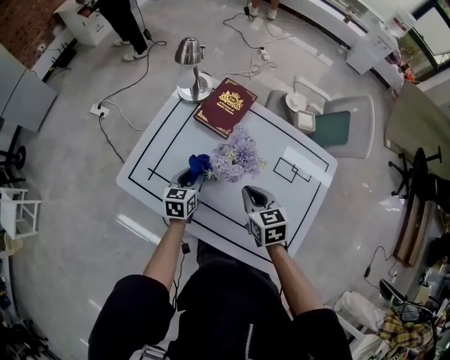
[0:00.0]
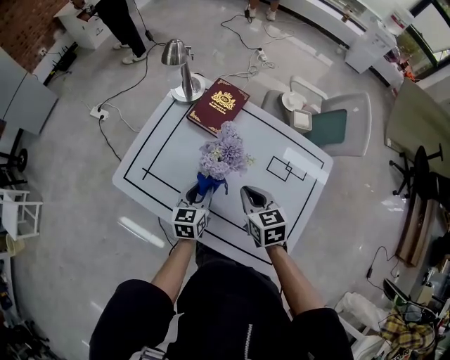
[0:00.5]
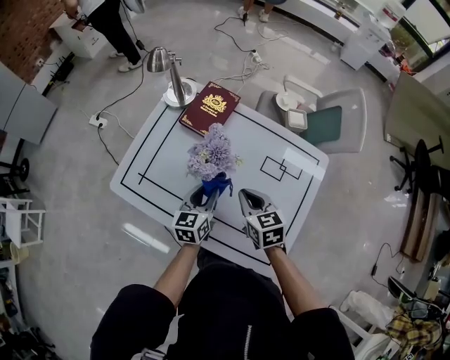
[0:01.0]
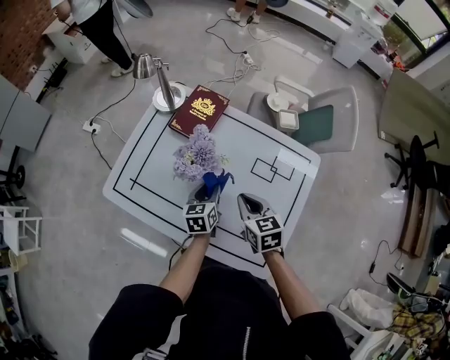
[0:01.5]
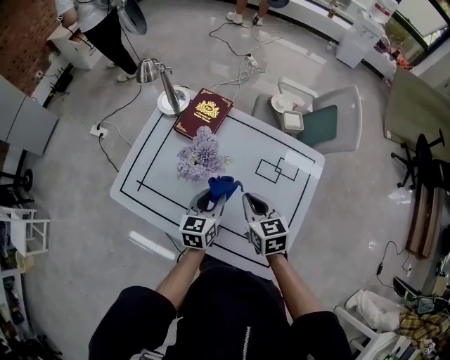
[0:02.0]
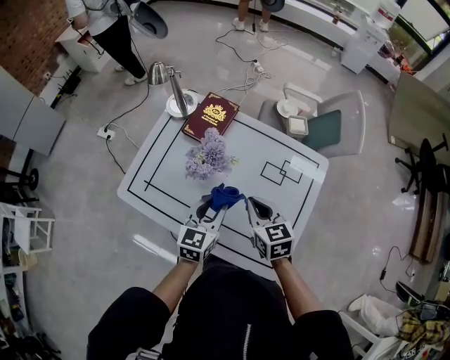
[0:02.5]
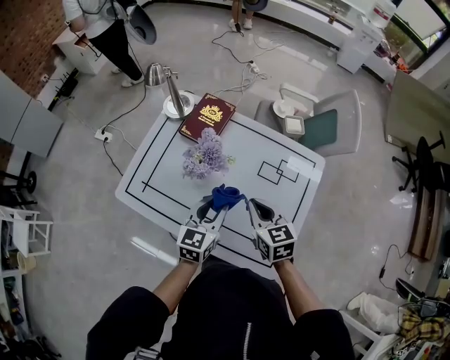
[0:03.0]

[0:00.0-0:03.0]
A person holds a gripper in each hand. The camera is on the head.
0:00.0 to 0:01.5: The right gripper goes approximately 10 cm to the right. Meanwhile the left gripper moves to the right, about 15 cm.
0:01.5 to 0:03.0: The right gripper is displaced upward by some 5 cm. Meanwhile the left gripper moves upward and backward, approximately 15 cm, and changes its angle by some 30 degrees.

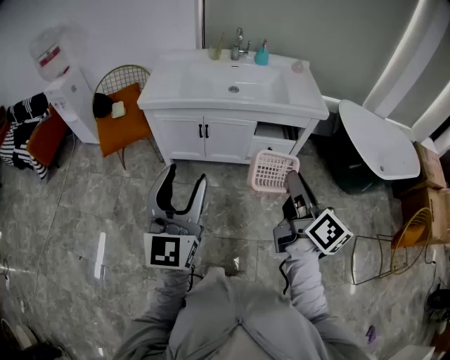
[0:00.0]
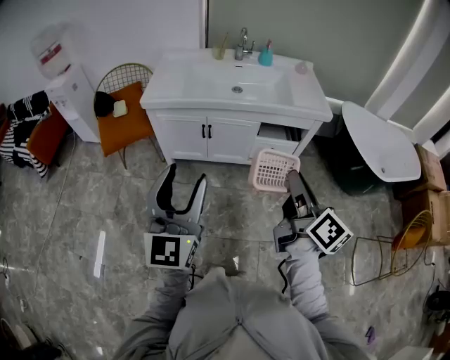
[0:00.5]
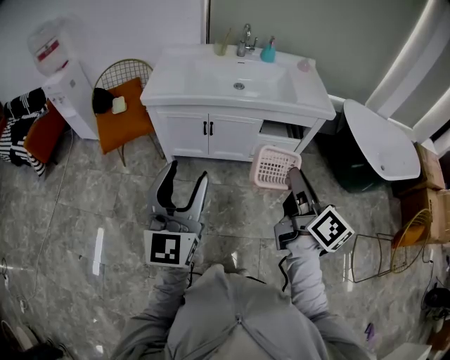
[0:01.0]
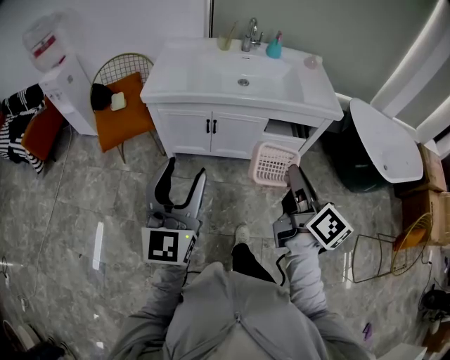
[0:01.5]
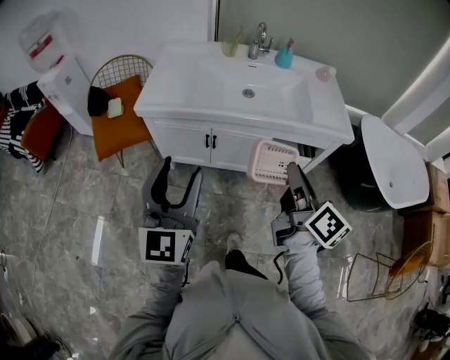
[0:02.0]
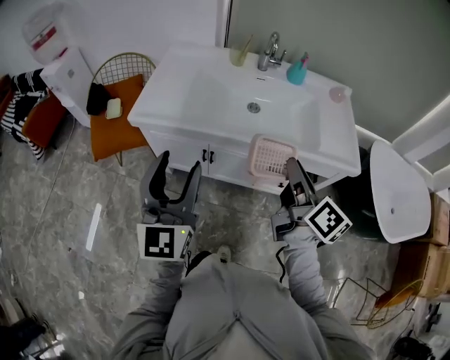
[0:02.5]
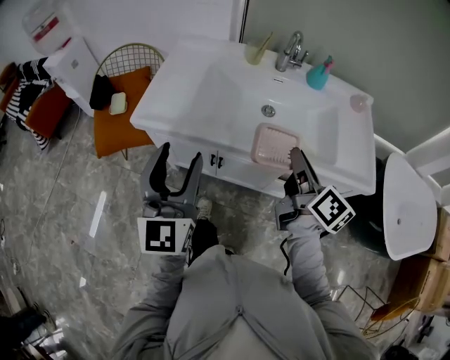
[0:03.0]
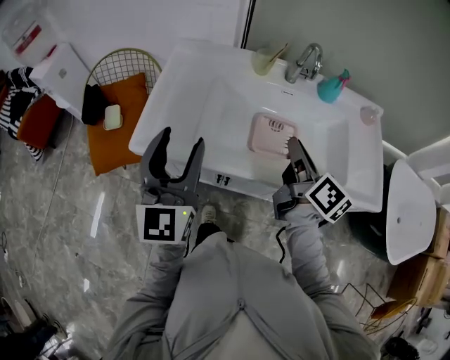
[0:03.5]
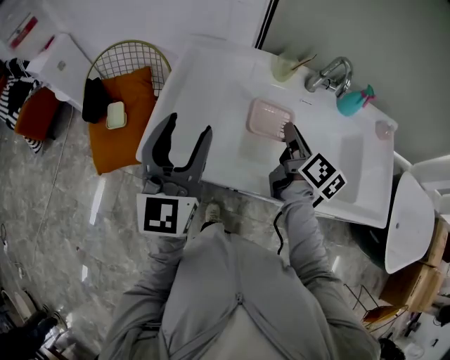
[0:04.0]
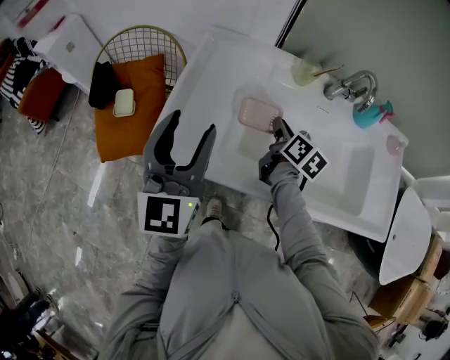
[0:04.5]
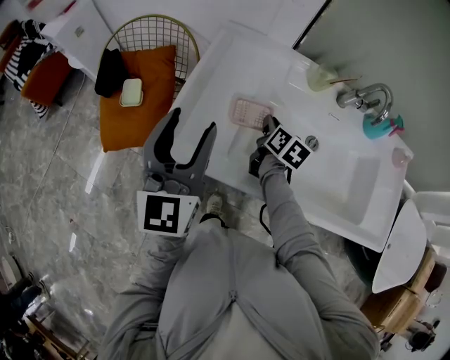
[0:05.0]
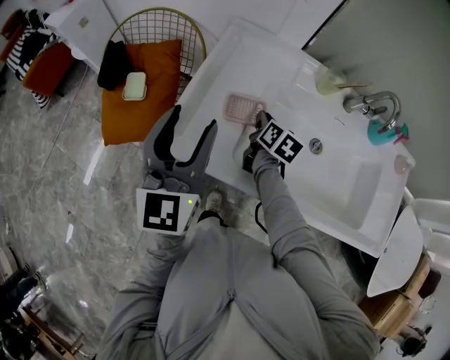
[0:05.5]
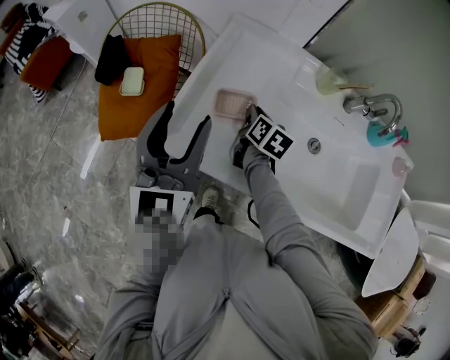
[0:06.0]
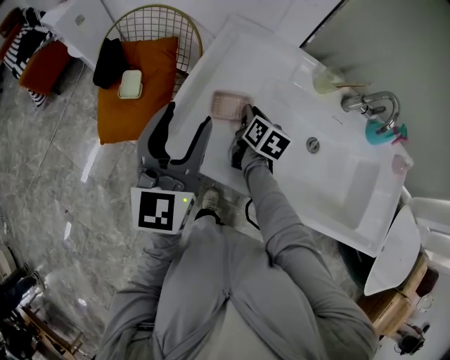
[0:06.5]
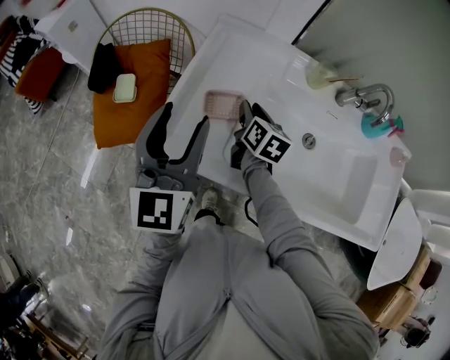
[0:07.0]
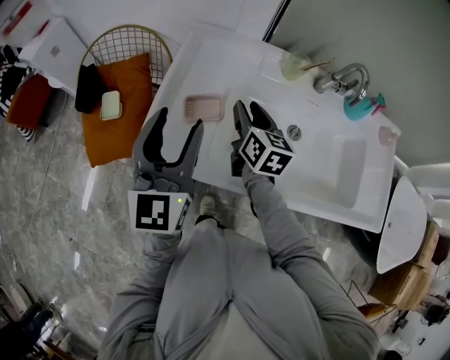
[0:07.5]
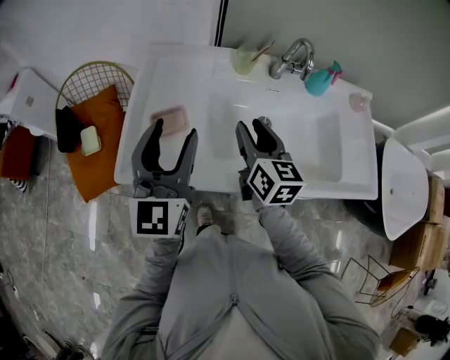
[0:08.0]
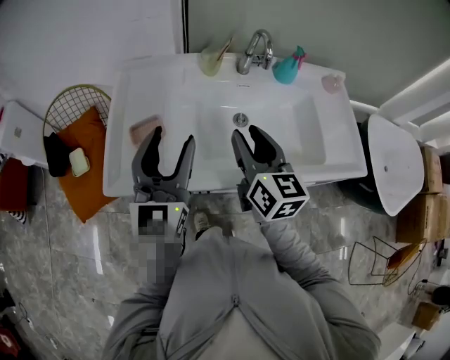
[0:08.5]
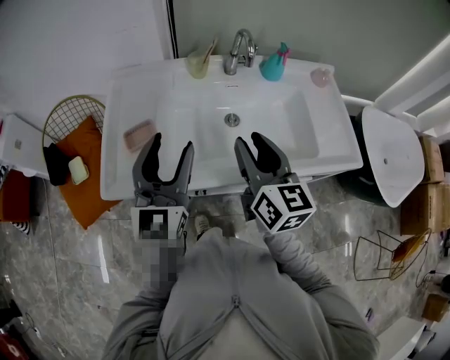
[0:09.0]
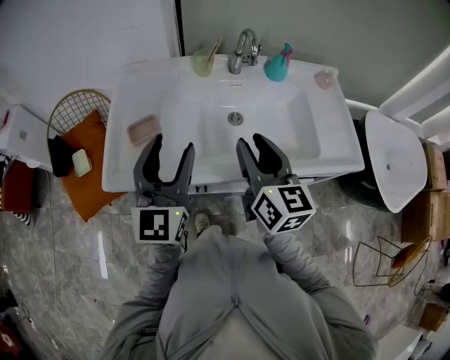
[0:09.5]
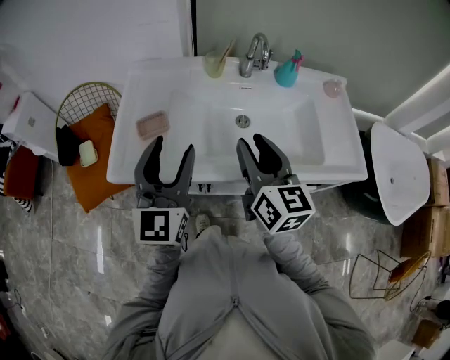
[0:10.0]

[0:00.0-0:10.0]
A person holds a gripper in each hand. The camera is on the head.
0:00.0 to 0:02.0: Both grippers travel together forward, some 20 cm.
0:02.0 to 0:04.0: Both grippers are carried forward, some 50 cm.
0:04.0 to 0:06.0: The left gripper travels to the left by about 10 cm. The right gripper heads to the left, downward and forward, covering about 25 cm, and swivels roughly 30 degrees.
0:06.0 to 0:08.0: The right gripper heads upward, to the right and backward, covering approximately 25 cm, rotates some 30 degrees, and opens its fingers, while the left gripper heads to the right, covering roughly 10 cm.
0:08.0 to 0:10.0: The right gripper heads backward, to the right and upward, covering roughly 15 cm. The left gripper is displaced to the right and backward by approximately 10 cm.

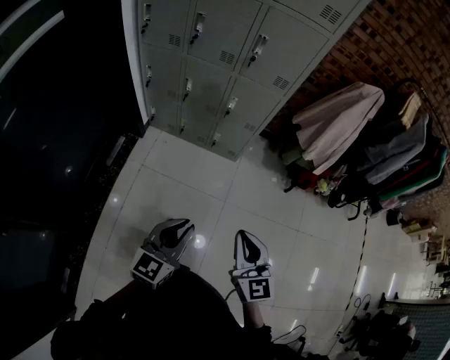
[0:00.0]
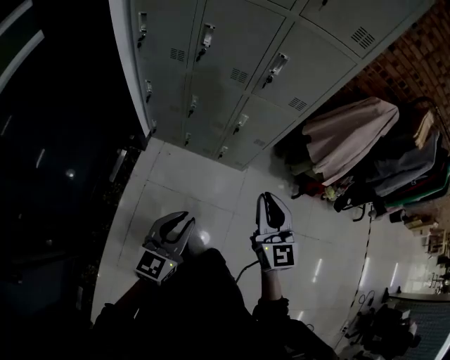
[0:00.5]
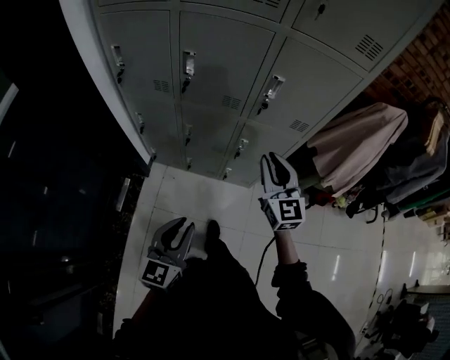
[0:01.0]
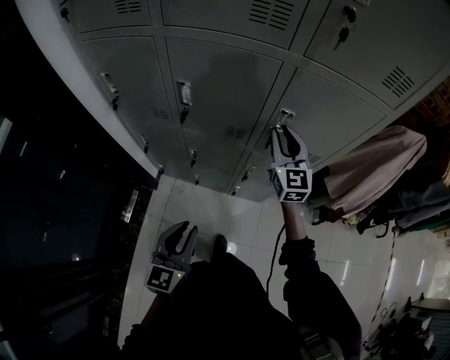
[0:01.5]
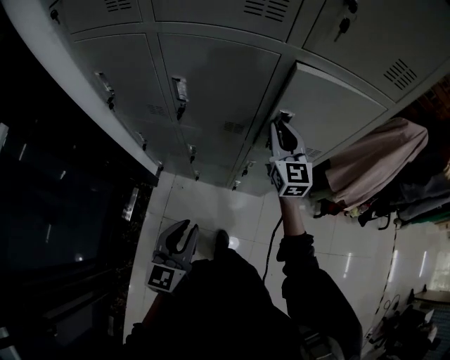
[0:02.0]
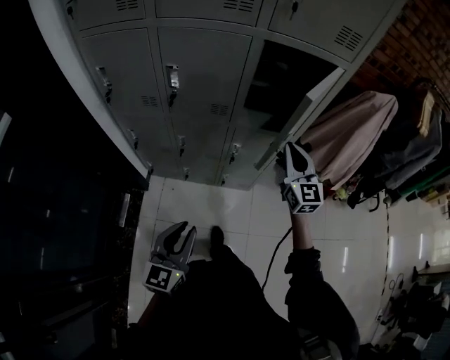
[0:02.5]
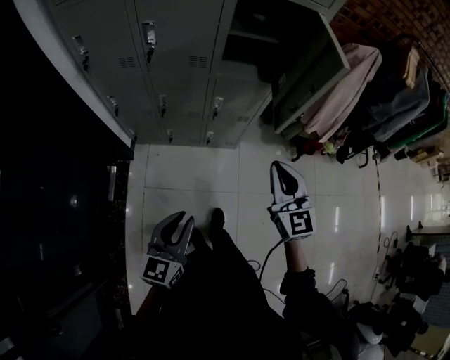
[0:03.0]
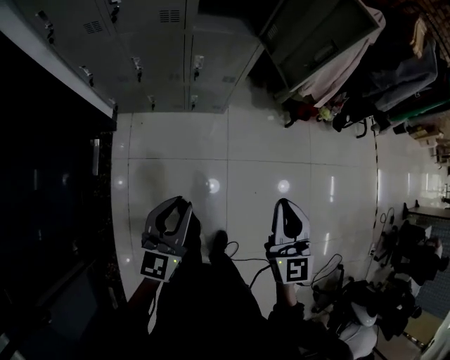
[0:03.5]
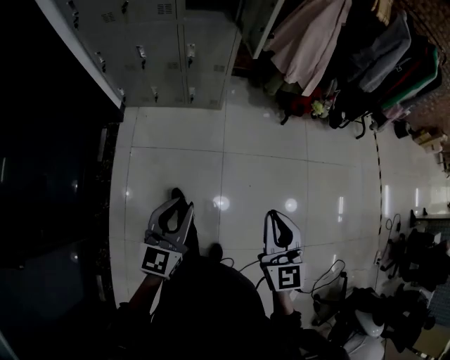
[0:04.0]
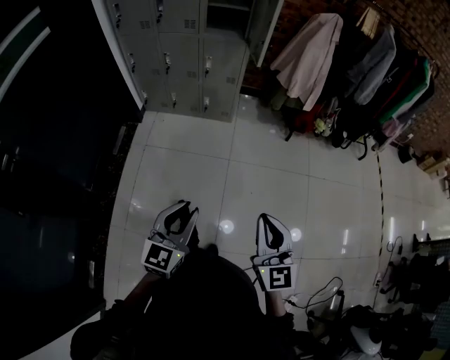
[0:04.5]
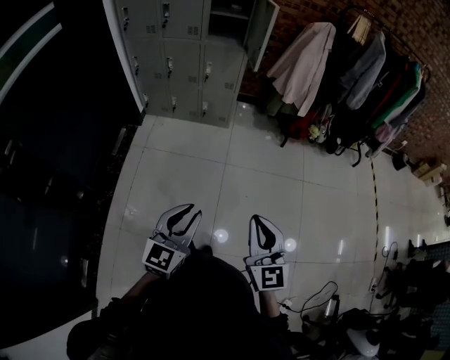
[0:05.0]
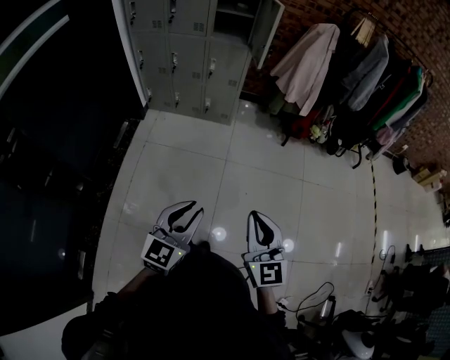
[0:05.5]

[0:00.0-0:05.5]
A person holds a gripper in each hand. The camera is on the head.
0:00.0 to 0:02.0: The two grippers travel together, forward, roughly 60 cm.
0:02.0 to 0:03.5: The right gripper heads backward, covering some 50 cm, while the left gripper travels backward and to the right by roughly 30 cm.
0:03.5 to 0:05.5: Both grippers are carried backward and to the right, roughly 50 cm.

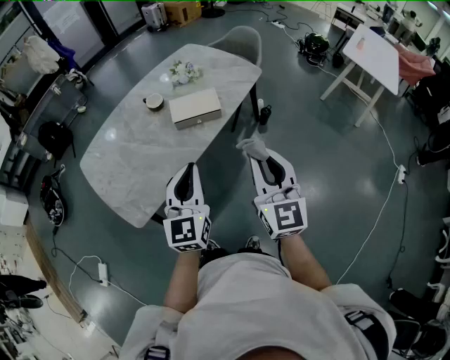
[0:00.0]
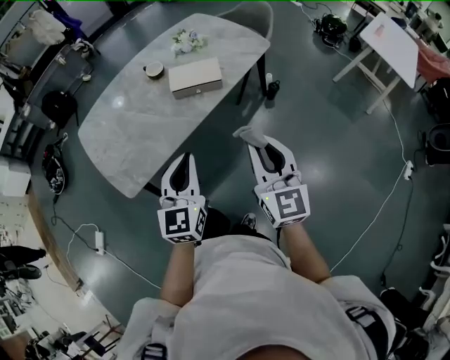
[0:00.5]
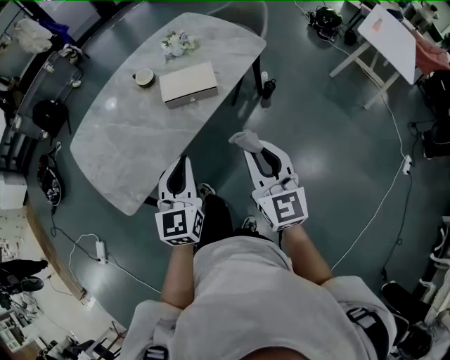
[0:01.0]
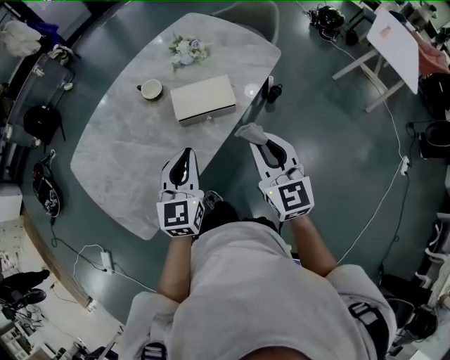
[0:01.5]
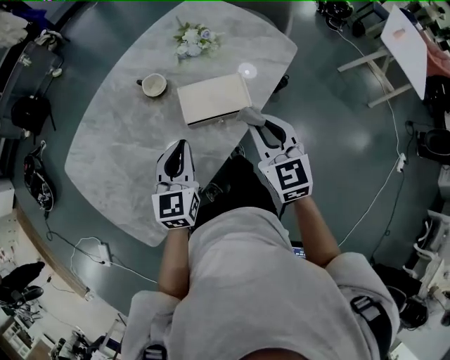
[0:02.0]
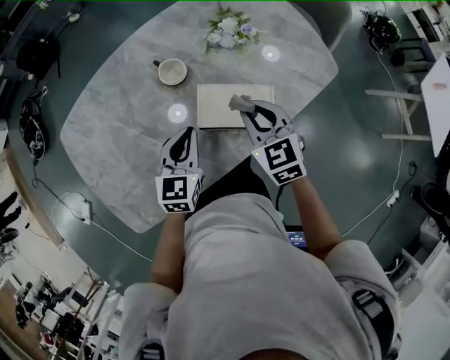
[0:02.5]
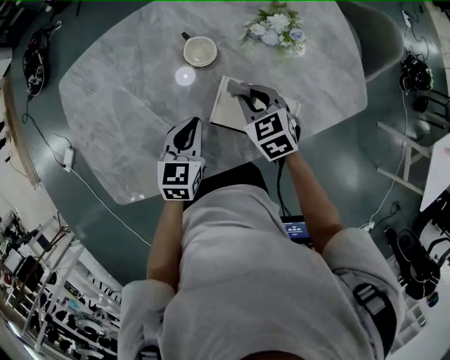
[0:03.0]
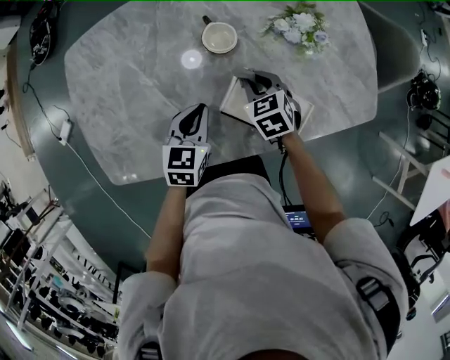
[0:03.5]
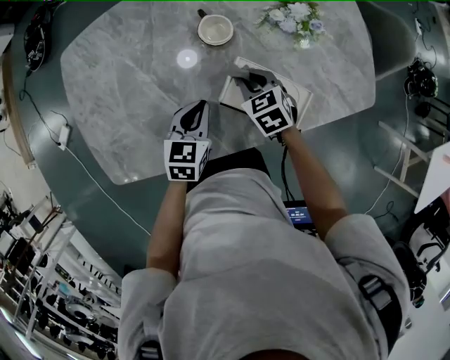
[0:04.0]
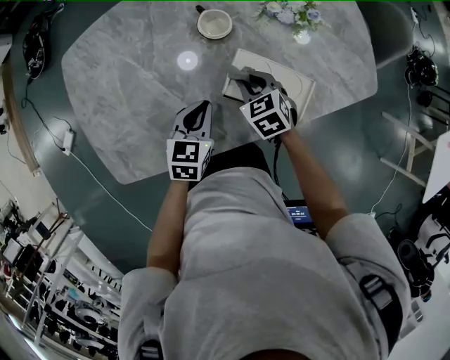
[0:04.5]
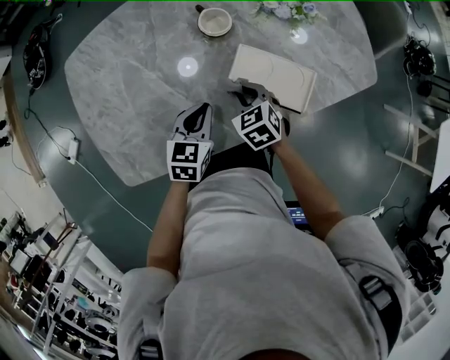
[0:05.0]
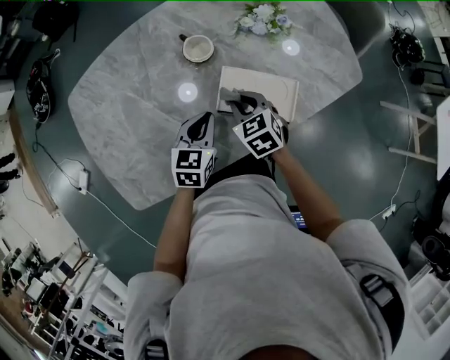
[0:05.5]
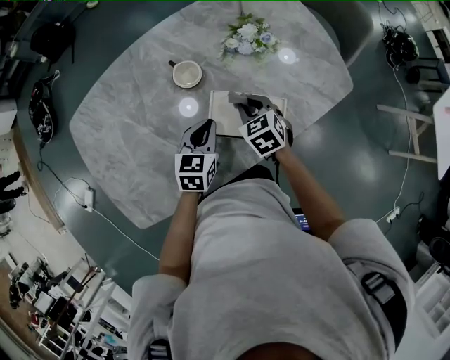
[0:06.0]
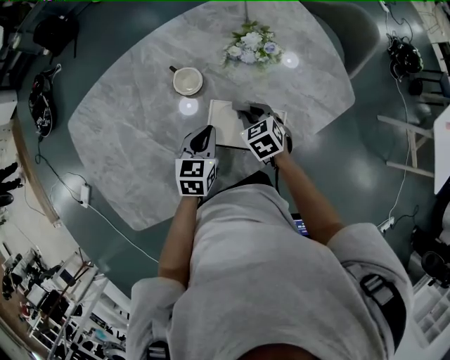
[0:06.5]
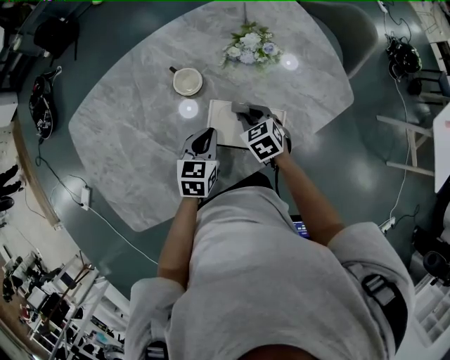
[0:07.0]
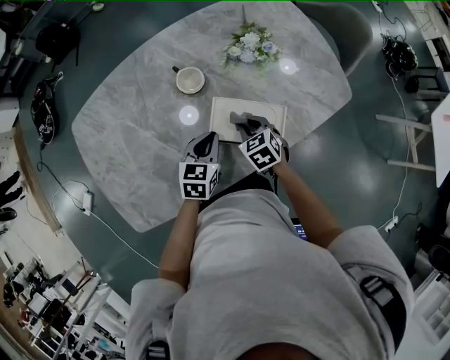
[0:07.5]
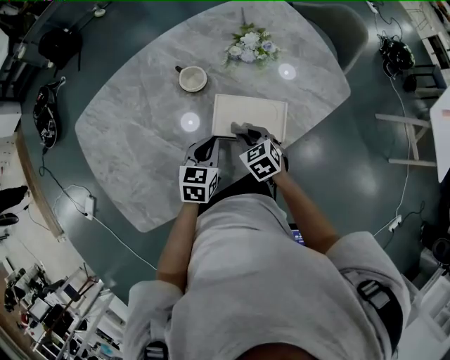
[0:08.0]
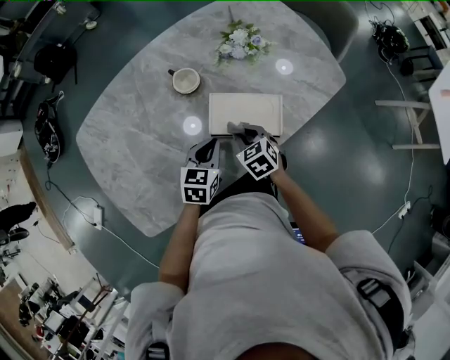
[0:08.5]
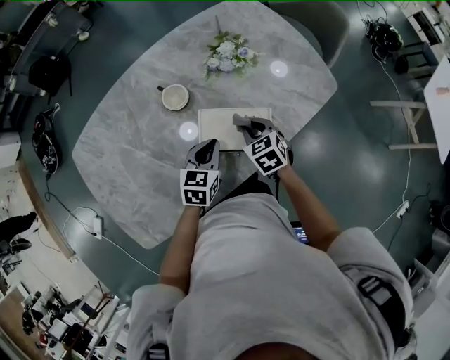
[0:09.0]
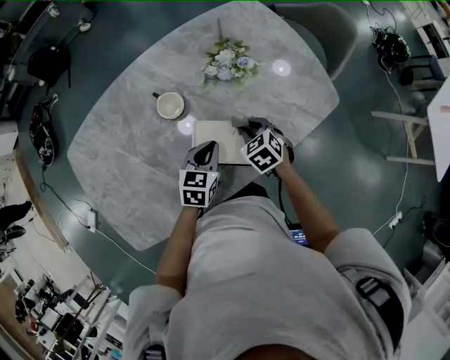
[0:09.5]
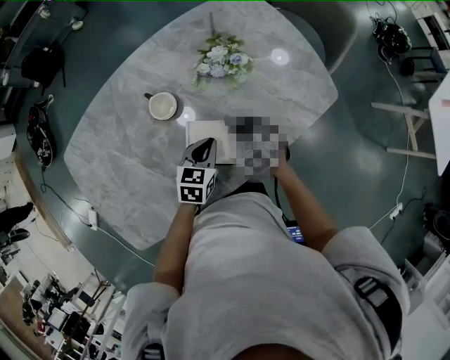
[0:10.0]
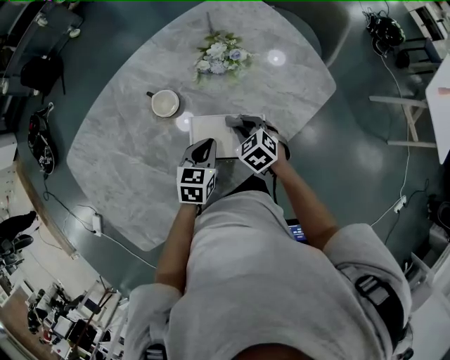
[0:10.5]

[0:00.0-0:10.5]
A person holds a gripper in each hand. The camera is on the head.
0:00.0 to 0:02.0: The right gripper goes roughly 30 cm forward, and turns by some 30 degrees. The left gripper goes some 30 cm forward and downward.
0:02.0 to 0:04.0: The right gripper ends up some 30 cm from where it was, and tips its fingers downward by approximately 30 degrees; the left gripper shifts some 15 cm downward, and swivels roughly 30 degrees.
0:04.0 to 0:06.5: Both grippers travel together to the right, some 10 cm.
0:06.5 to 0:08.5: The two grippers go some 10 cm backward.
0:08.5 to 0:10.5: Both grippers travel together forward and to the right, about 10 cm.
